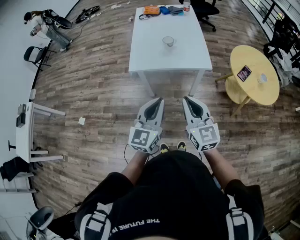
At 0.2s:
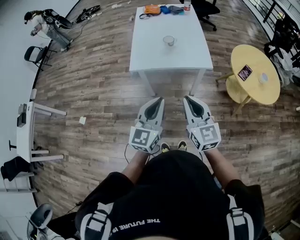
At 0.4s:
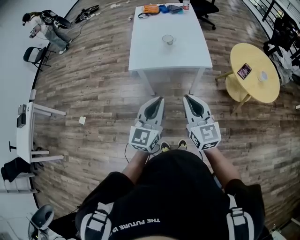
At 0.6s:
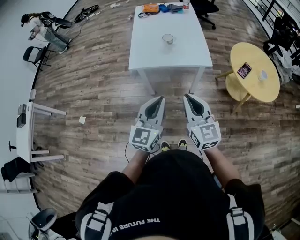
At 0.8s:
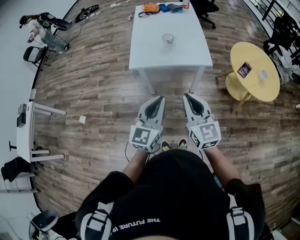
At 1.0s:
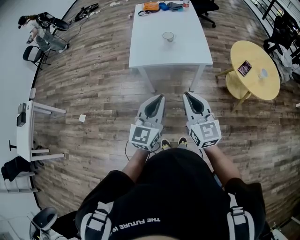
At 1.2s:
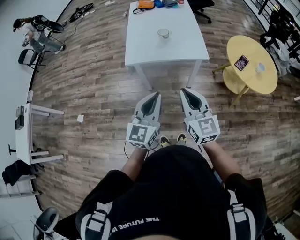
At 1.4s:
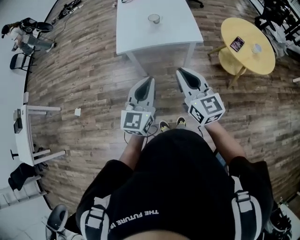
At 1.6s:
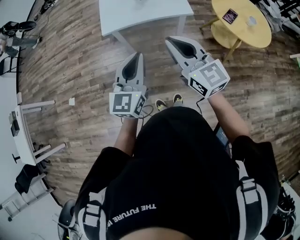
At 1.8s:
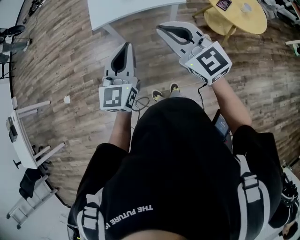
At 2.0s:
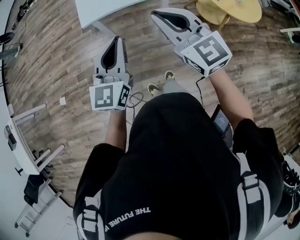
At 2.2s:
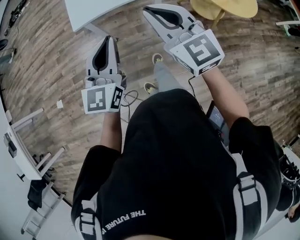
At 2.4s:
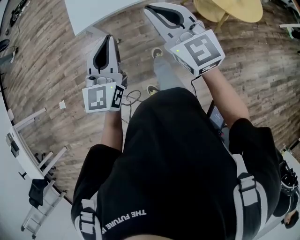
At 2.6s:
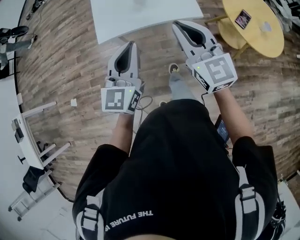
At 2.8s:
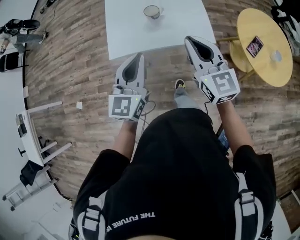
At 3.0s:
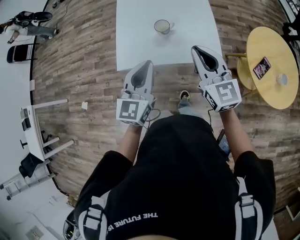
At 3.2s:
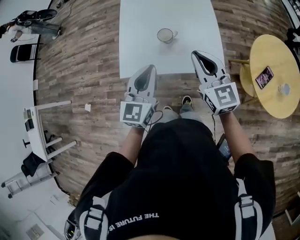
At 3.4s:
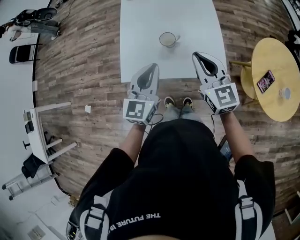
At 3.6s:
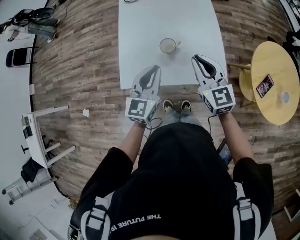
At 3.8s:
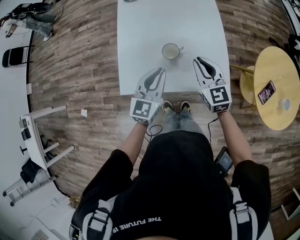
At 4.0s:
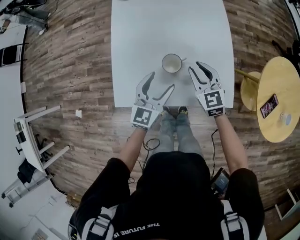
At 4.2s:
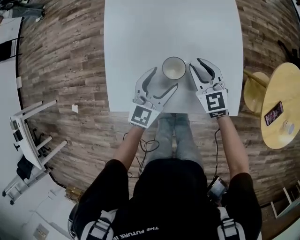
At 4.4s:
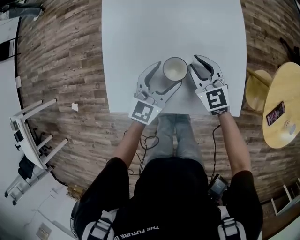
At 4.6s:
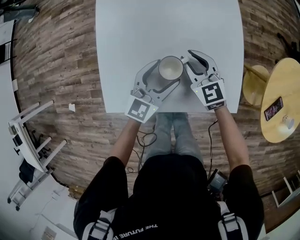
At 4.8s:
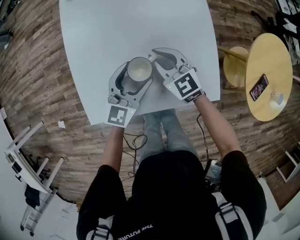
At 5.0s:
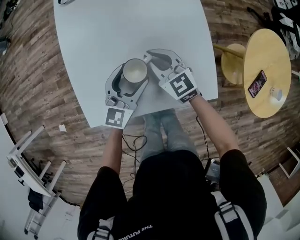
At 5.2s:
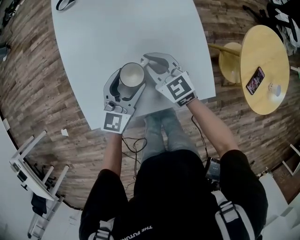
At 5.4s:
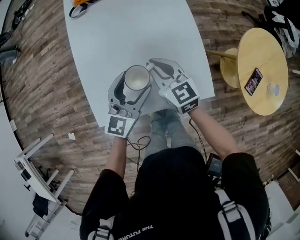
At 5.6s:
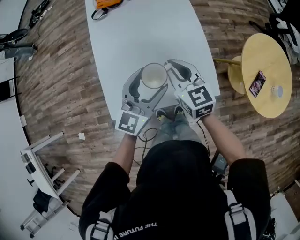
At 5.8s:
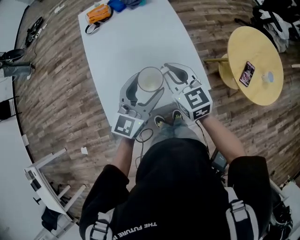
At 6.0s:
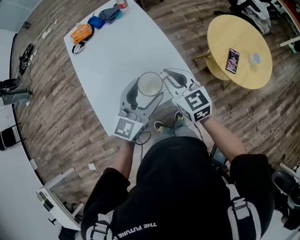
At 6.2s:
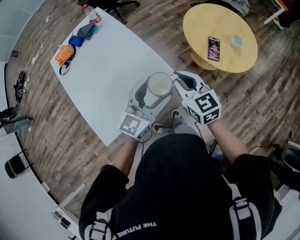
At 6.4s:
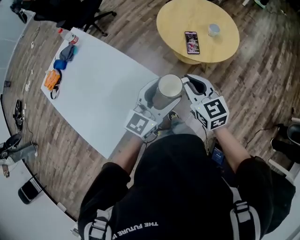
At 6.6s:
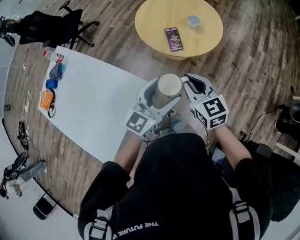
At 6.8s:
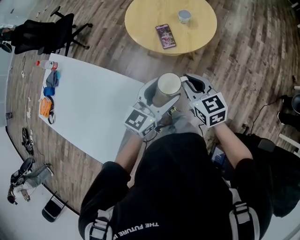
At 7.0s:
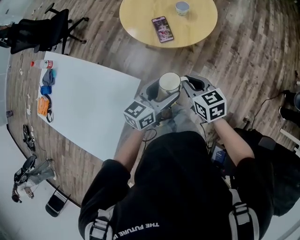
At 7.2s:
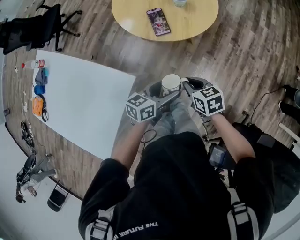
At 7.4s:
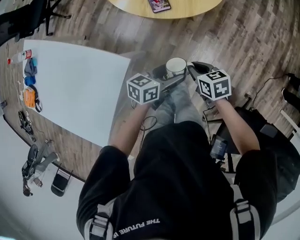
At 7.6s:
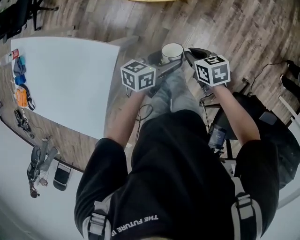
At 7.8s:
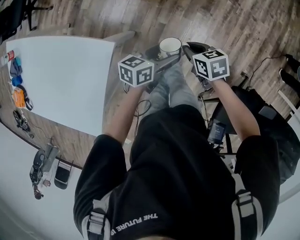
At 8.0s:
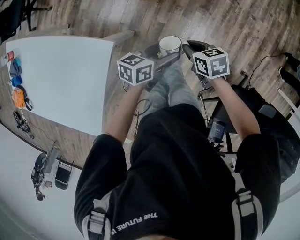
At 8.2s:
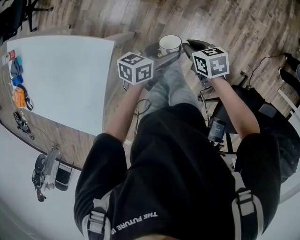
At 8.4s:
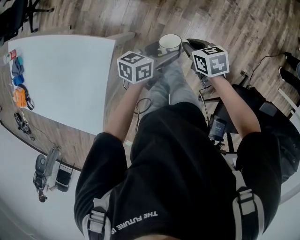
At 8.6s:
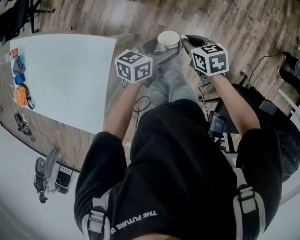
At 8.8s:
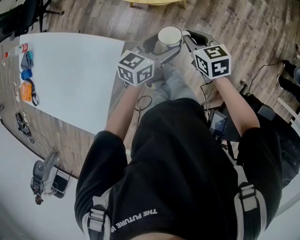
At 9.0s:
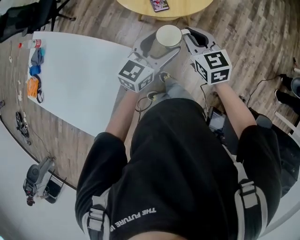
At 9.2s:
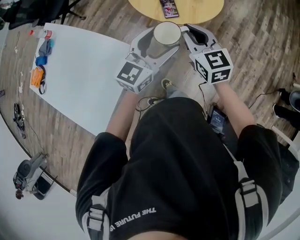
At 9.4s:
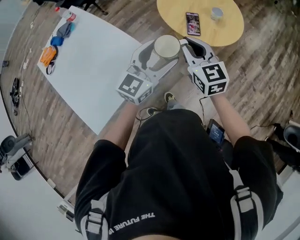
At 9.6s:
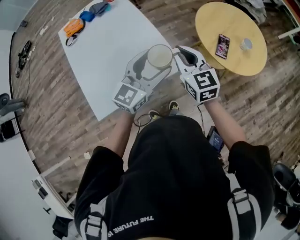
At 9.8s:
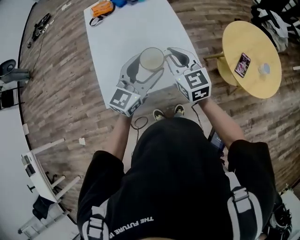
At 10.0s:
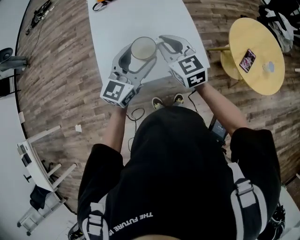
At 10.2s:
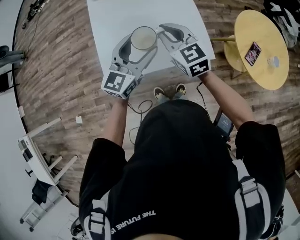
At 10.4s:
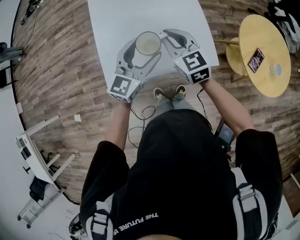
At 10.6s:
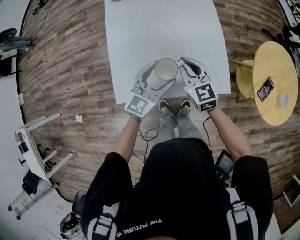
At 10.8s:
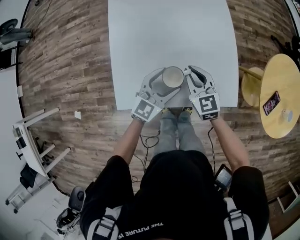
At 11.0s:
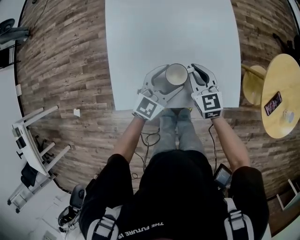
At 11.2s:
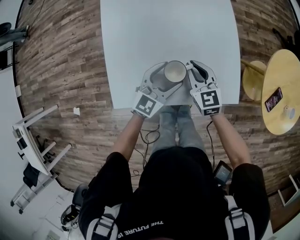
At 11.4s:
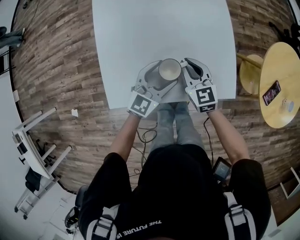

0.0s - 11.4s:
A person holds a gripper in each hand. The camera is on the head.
0.0s - 1.4s: The grippers stay close to where they were, moving slightly.
1.4s - 2.8s: Both grippers move forward, some 25 cm.
2.8s - 4.2s: Both grippers travel together forward and downward, about 40 cm. The left gripper opens up. Meanwhile the right gripper turns by roughly 20 degrees, and opens up.
4.2s - 5.6s: The grippers both shift upward by approximately 15 cm. The right gripper turns by roughly 20 degrees.
5.6s - 7.2s: The two grippers travel together, roughly 50 cm. The left gripper changes its angle by about 80 degrees, while the right gripper rotates approximately 60 degrees.
7.2s - 8.6s: The right gripper heads downward, covering roughly 5 cm.
8.6s - 10.0s: Both grippers are carried roughly 50 cm. The left gripper turns by about 80 degrees. The right gripper points its fingers about 40 degrees further upward.
10.0s - 11.4s: The grippers both shift downward by some 20 cm.

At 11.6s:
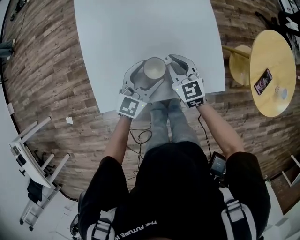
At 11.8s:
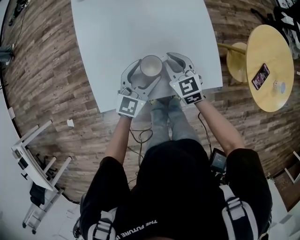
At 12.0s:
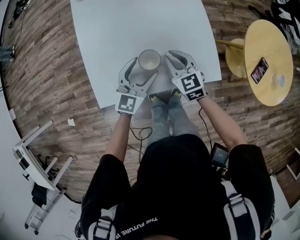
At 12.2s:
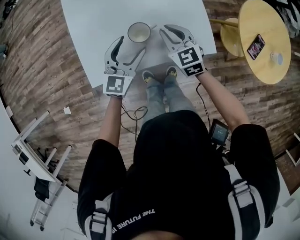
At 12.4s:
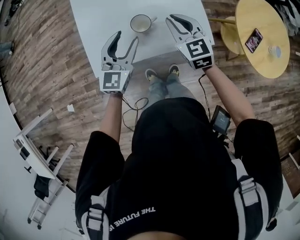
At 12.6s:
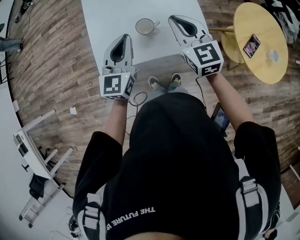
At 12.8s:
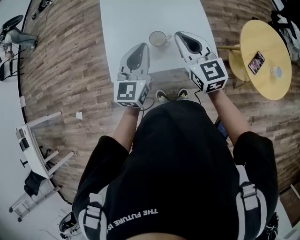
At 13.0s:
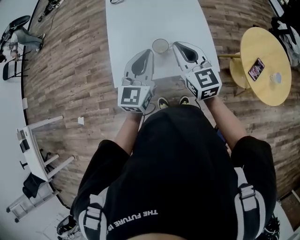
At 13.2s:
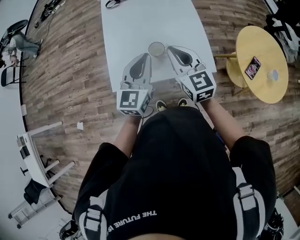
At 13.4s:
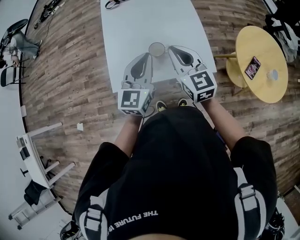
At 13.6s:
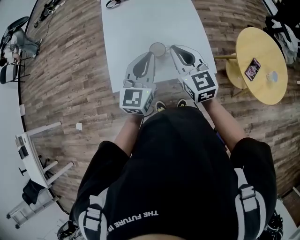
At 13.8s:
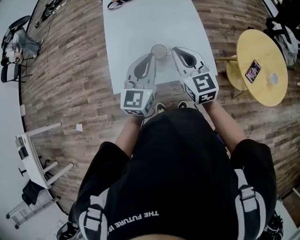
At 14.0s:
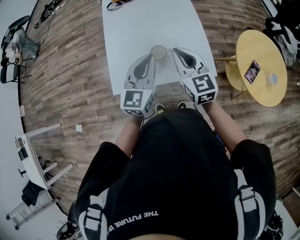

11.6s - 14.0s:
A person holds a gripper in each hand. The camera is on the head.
11.6s - 12.8s: The two grippers go roughly 25 cm upward and backward. The left gripper changes its angle by approximately 30 degrees, and closes its fingers.
12.8s - 14.0s: The grippers move only a little.

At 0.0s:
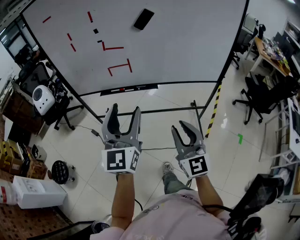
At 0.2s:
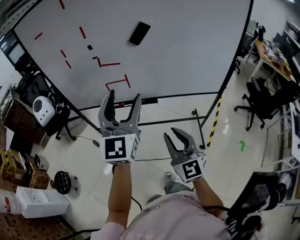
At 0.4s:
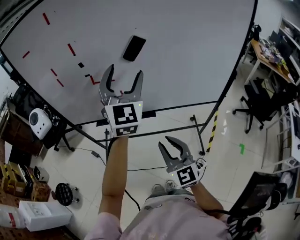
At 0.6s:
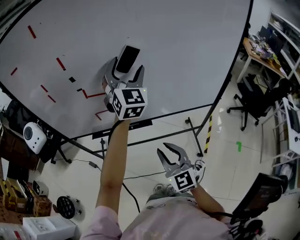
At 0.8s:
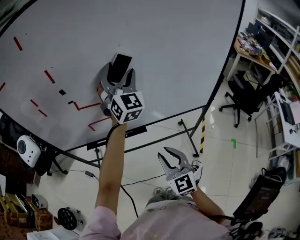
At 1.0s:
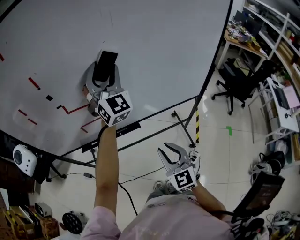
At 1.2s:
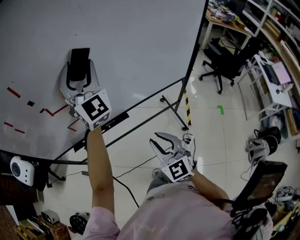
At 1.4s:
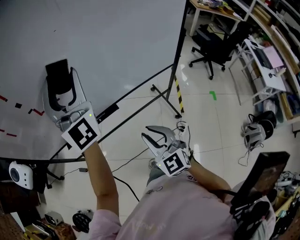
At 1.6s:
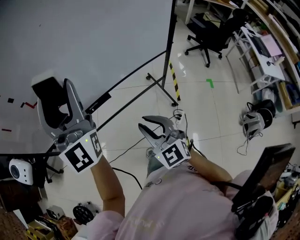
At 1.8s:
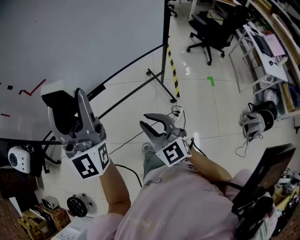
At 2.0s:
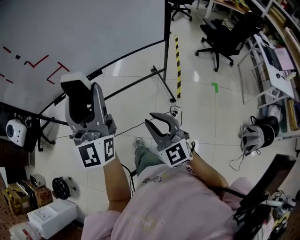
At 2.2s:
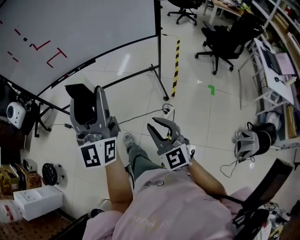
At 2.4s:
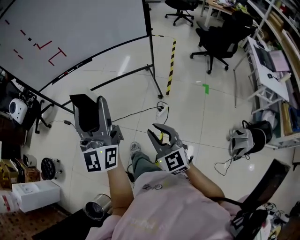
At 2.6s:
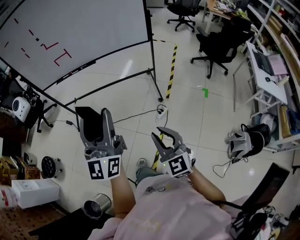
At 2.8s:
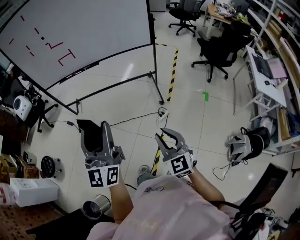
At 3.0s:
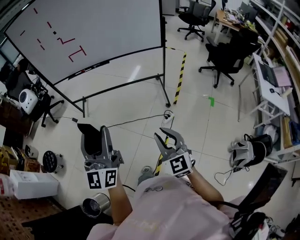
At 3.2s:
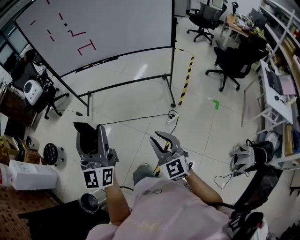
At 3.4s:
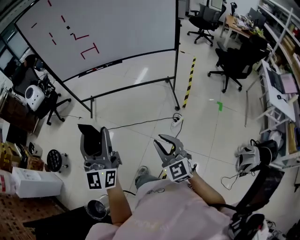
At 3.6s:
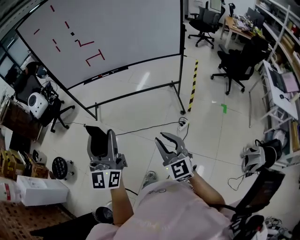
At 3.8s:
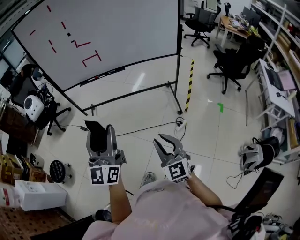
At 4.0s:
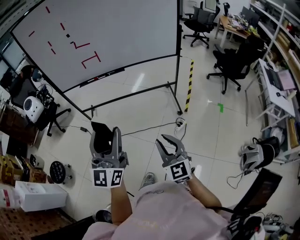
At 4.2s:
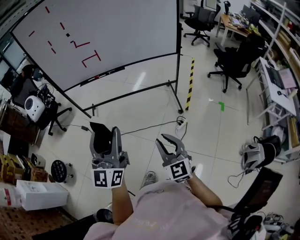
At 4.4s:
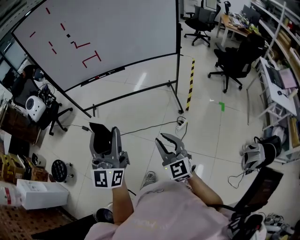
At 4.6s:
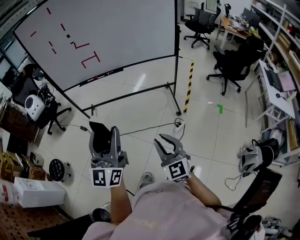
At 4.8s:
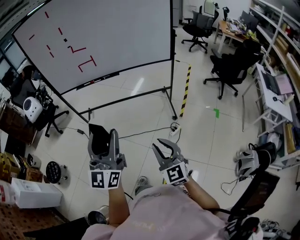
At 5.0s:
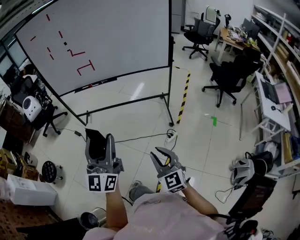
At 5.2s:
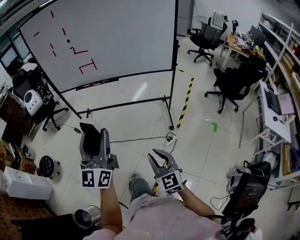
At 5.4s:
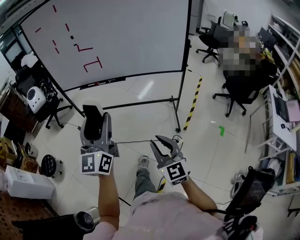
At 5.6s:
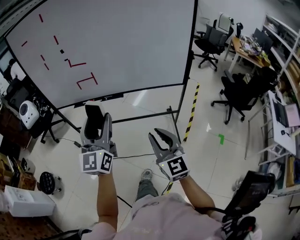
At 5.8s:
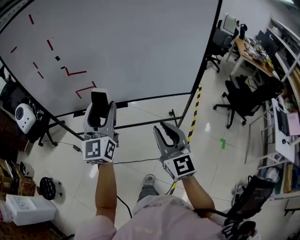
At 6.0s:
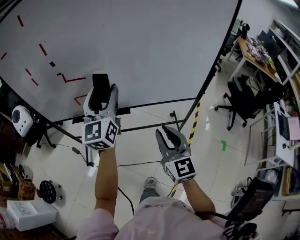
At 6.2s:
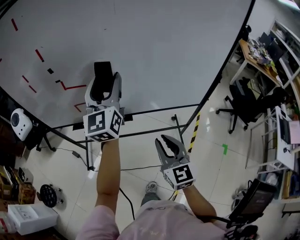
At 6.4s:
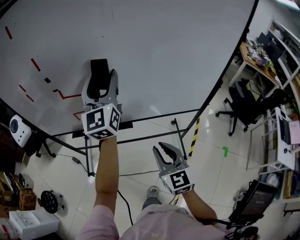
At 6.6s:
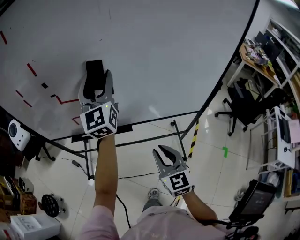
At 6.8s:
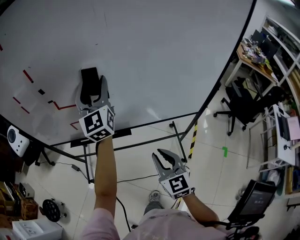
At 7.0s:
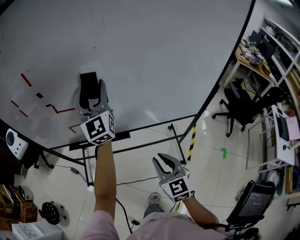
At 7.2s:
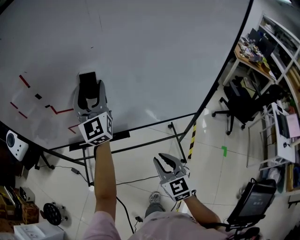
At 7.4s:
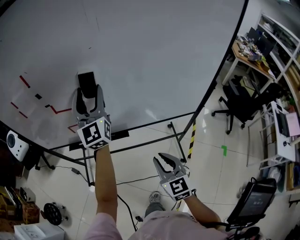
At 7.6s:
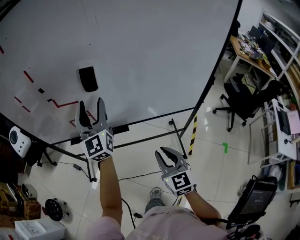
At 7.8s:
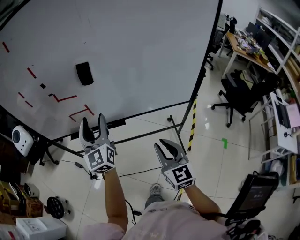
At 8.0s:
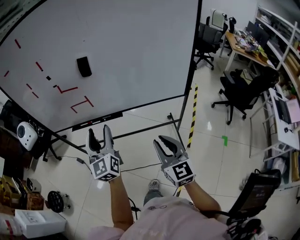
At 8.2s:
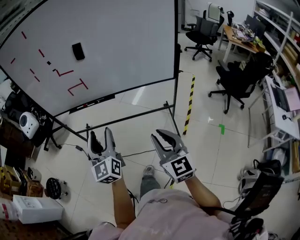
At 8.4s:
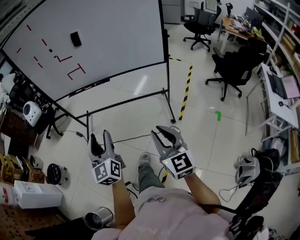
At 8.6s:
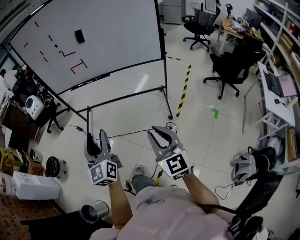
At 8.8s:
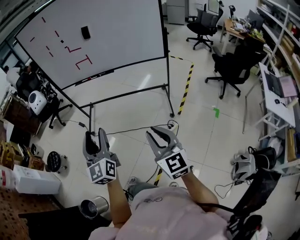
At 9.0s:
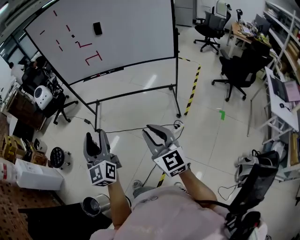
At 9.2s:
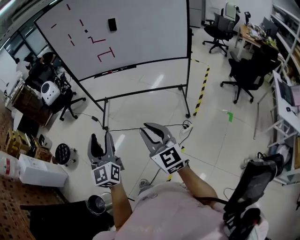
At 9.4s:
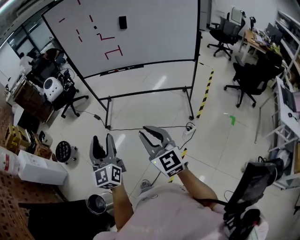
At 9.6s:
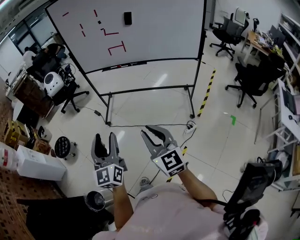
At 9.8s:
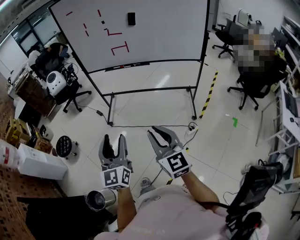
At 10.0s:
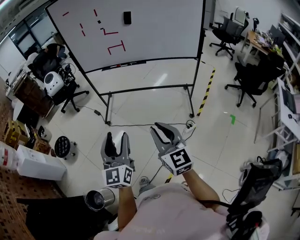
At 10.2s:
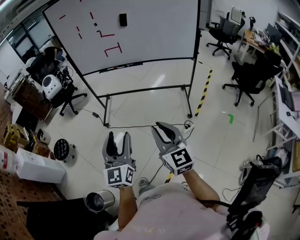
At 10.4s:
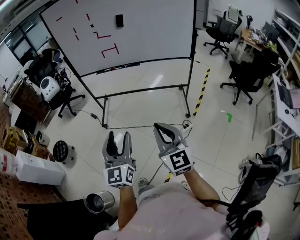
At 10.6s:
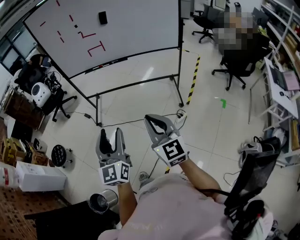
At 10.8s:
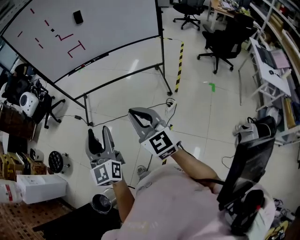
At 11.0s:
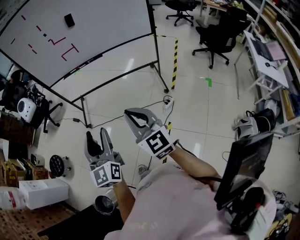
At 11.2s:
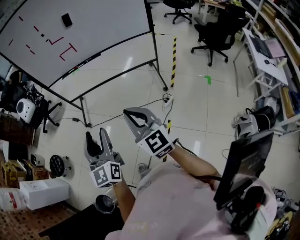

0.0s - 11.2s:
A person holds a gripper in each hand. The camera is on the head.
0.0s - 1.6s: The right gripper goes roughly 10 cm forward, and rotates approximately 20 degrees. Meanwhile the left gripper heads forward and upward, covering some 25 cm, and swivels about 20 degrees.
1.6s - 3.2s: Both grippers are carried backward, some 60 cm. The left gripper turns by some 20 degrees.
3.2s - 4.8s: The two grippers go some 5 cm forward.
4.8s - 6.4s: Both grippers are carried forward, roughly 60 cm.
6.4s - 8.0s: The right gripper moves backward and to the right, some 15 cm. Meanwhile the left gripper shifts some 30 cm backward and downward.
8.0s - 9.6s: The pair of grippers is taken backward and to the left, roughly 50 cm. The right gripper rotates approximately 20 degrees.
9.6s - 11.2s: The grippers both shift to the right by approximately 10 cm.
